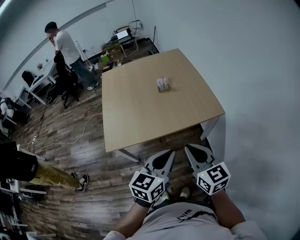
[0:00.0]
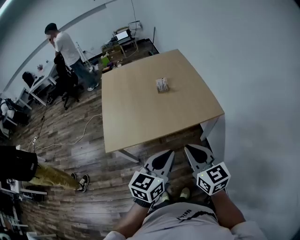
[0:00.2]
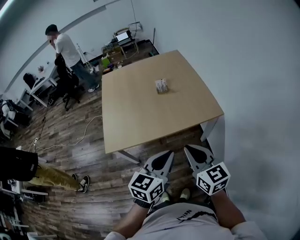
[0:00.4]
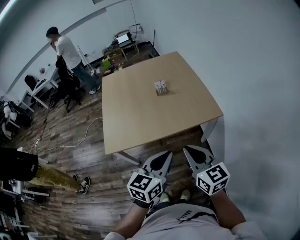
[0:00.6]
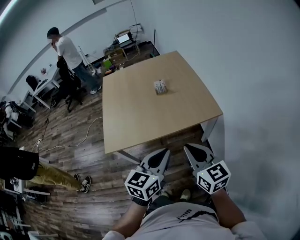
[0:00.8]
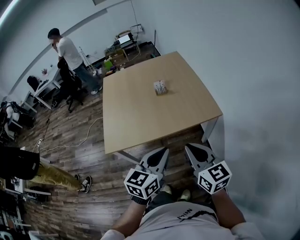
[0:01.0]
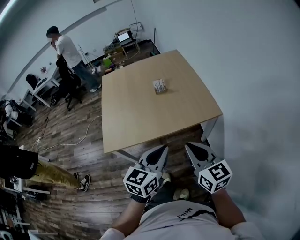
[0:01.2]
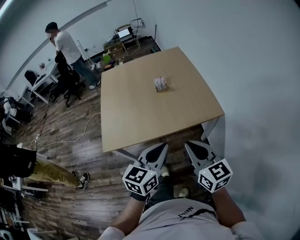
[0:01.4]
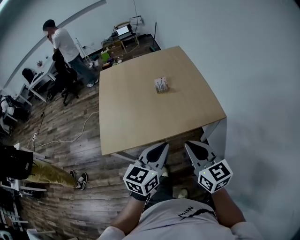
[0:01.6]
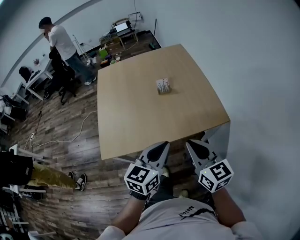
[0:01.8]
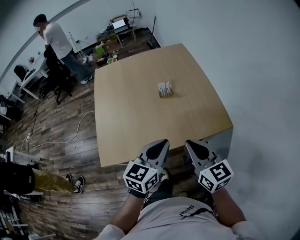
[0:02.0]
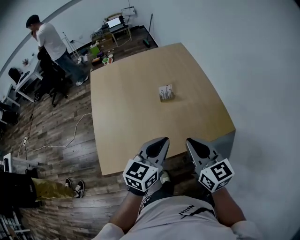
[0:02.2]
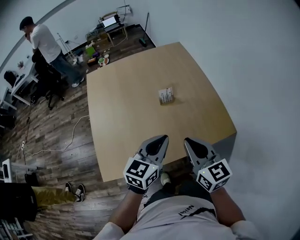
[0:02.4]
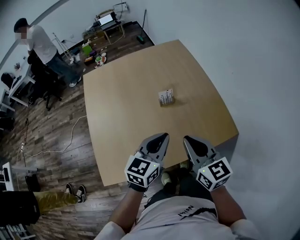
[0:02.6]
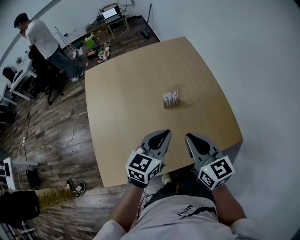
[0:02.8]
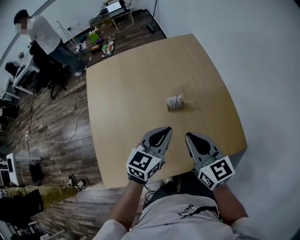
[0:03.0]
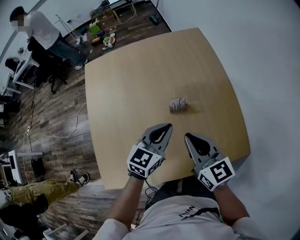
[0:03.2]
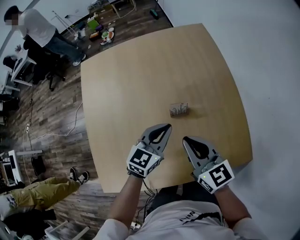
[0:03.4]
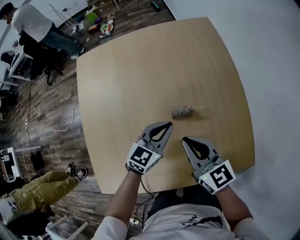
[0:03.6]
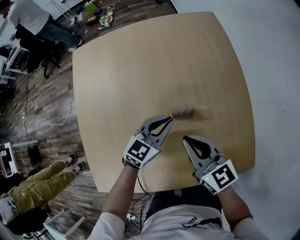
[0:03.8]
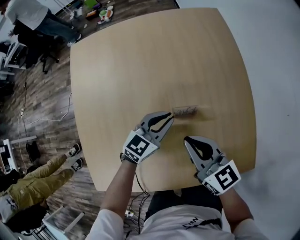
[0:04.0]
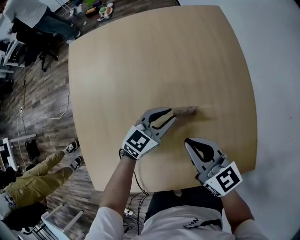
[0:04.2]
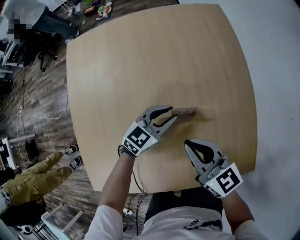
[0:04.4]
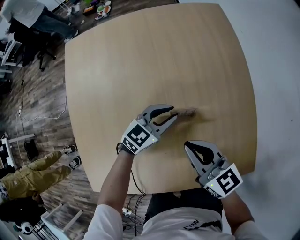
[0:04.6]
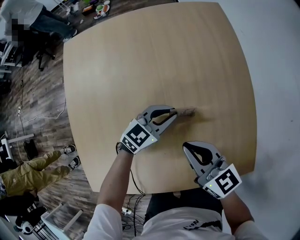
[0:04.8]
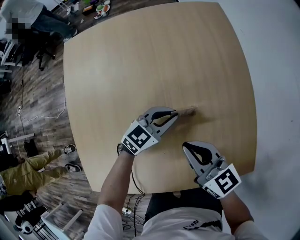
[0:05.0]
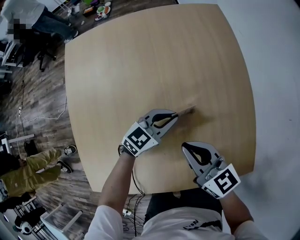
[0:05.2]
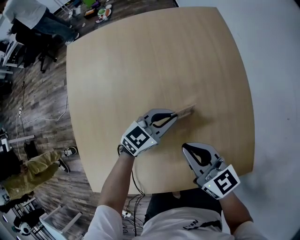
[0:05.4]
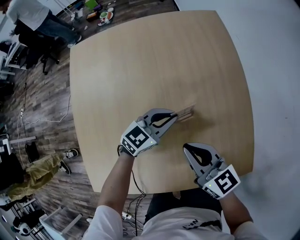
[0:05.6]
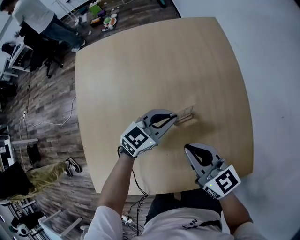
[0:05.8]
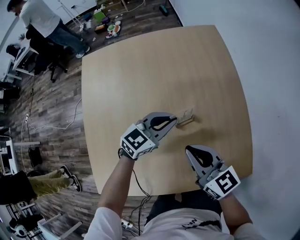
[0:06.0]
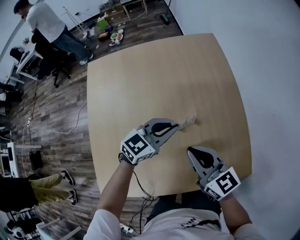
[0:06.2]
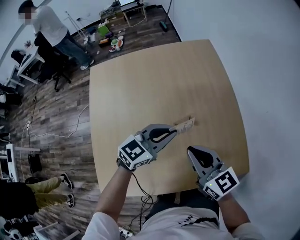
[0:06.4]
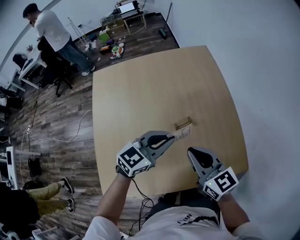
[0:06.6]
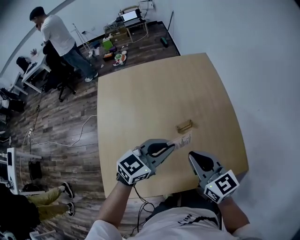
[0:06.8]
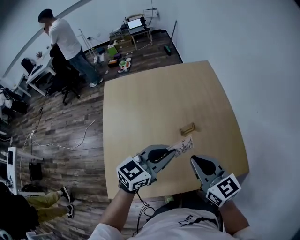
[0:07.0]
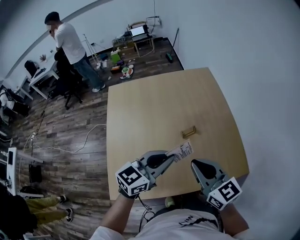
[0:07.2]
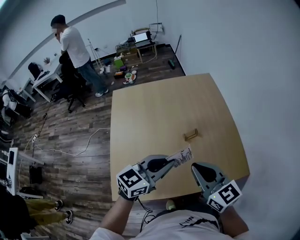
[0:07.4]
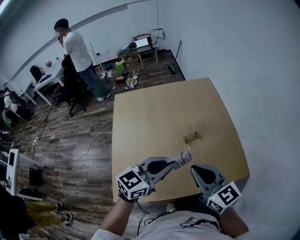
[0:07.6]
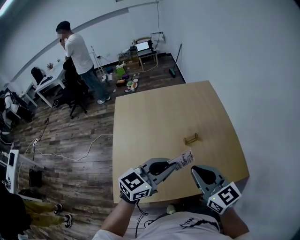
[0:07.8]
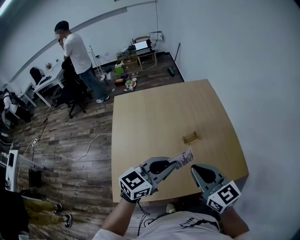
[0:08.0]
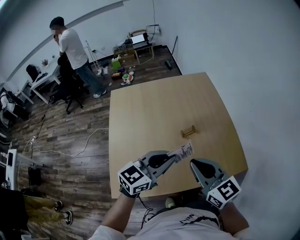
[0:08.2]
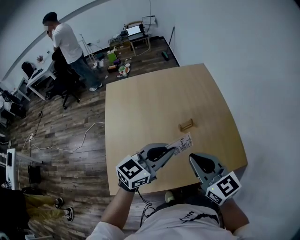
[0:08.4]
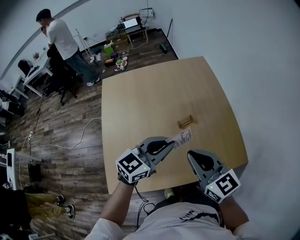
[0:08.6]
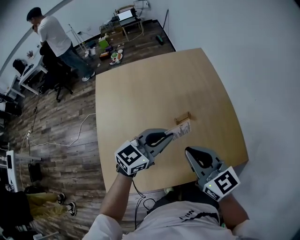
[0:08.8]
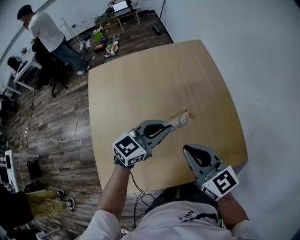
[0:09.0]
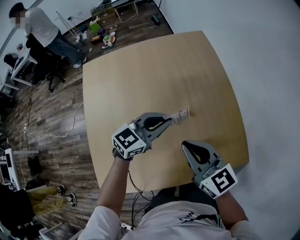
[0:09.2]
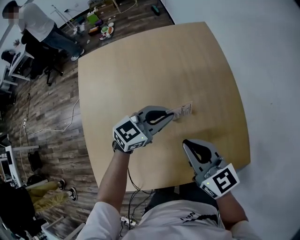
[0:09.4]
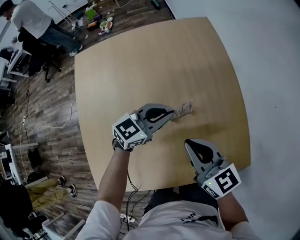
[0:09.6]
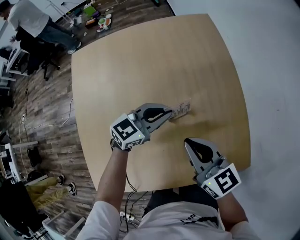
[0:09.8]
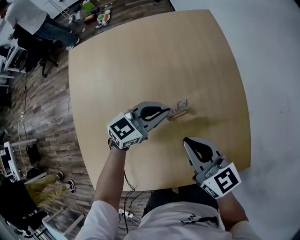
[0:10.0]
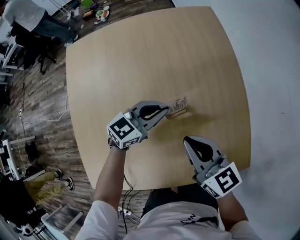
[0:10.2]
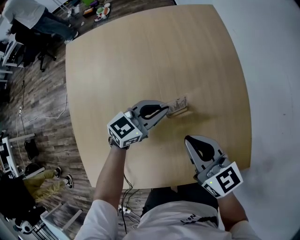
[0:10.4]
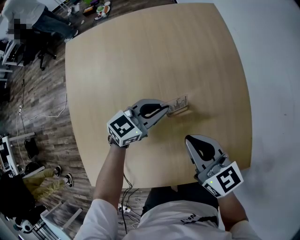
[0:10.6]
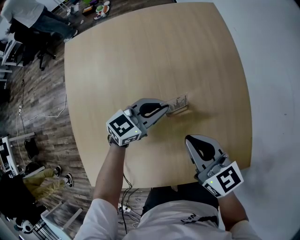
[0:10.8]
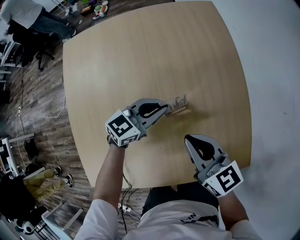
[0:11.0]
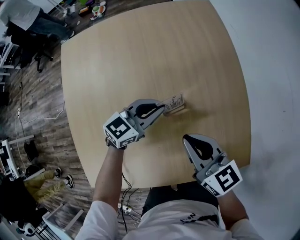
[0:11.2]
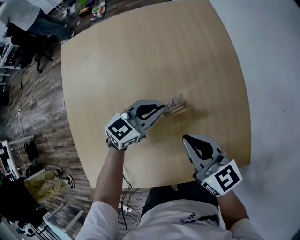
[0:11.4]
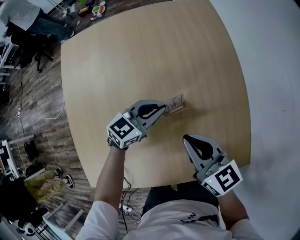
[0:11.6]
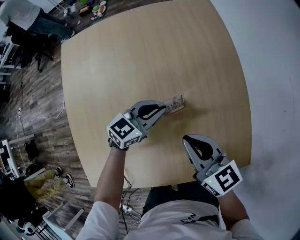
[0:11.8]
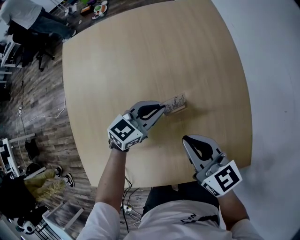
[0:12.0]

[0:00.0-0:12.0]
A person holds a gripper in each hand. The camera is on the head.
0:00.0 to 0:01.6: Both grippers travel together forward, some 5 cm.
0:01.6 to 0:03.0: The grippers both shift forward by some 35 cm.
0:03.0 to 0:04.4: The two grippers go about 25 cm downward and forward. The left gripper opens its fingers.
0:04.4 to 0:06.0: The left gripper heads upward, covering about 10 cm.
0:06.0 to 0:07.6: The grippers both shift backward and upward by some 30 cm.
0:07.6 to 0:09.0: The left gripper shifts some 20 cm forward and downward; the right gripper travels forward and downward by approximately 10 cm.
0:09.0 to 0:10.4: The grippers both shift downward and forward by roughly 20 cm.
0:10.4 to 0:12.0: The grippers stay close to where they were, moving slightly.

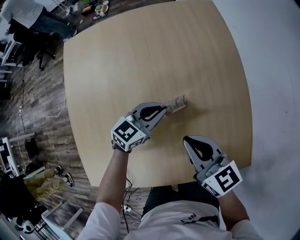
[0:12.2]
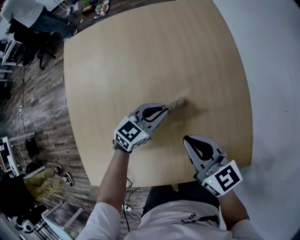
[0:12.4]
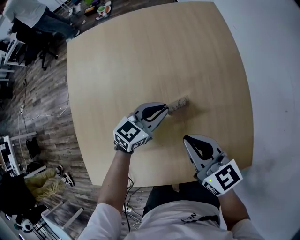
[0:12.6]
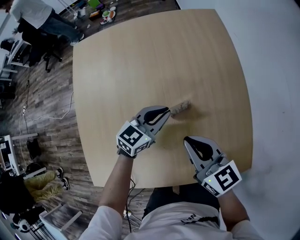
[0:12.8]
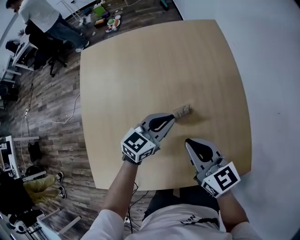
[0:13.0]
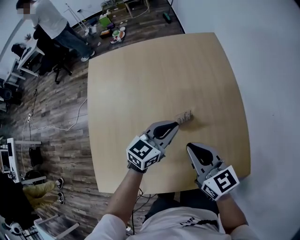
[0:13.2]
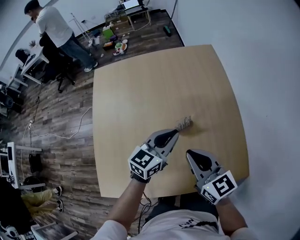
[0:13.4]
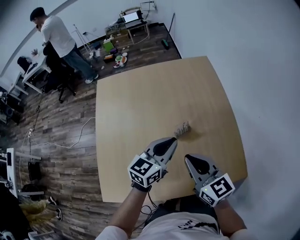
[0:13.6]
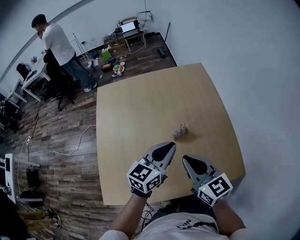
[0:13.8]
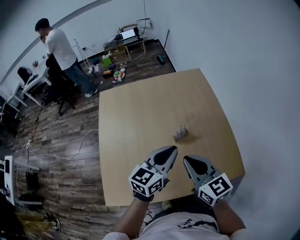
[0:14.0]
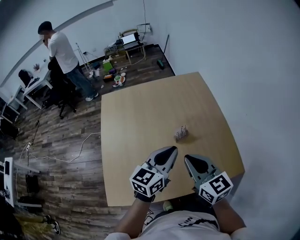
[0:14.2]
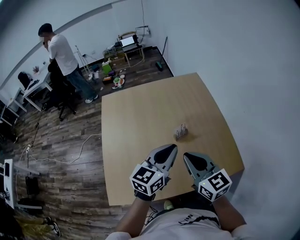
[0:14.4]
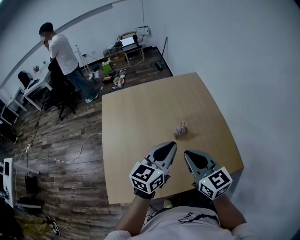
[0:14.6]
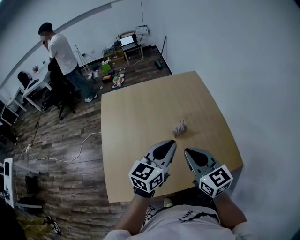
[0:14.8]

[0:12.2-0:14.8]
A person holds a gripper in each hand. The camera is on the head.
0:12.2 to 0:13.4: The left gripper goes approximately 15 cm upward and backward. The right gripper travels upward and backward by about 10 cm.
0:13.4 to 0:14.8: The two grippers go roughly 20 cm upward and backward.

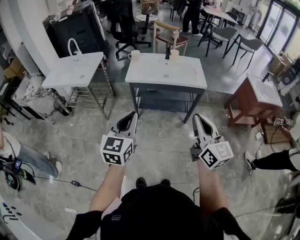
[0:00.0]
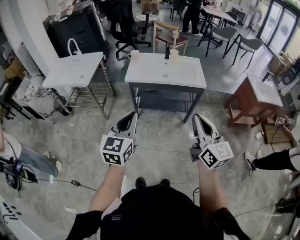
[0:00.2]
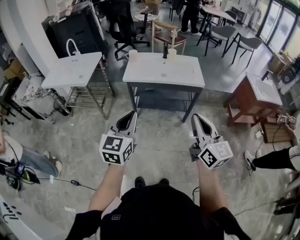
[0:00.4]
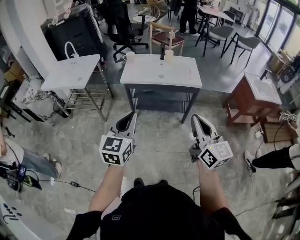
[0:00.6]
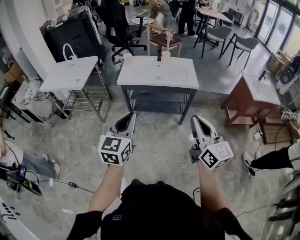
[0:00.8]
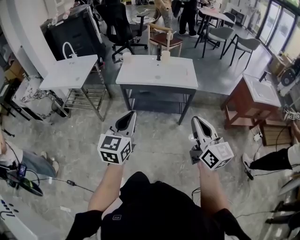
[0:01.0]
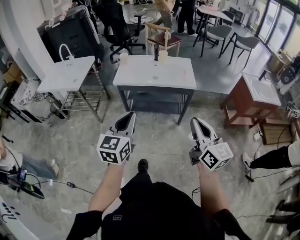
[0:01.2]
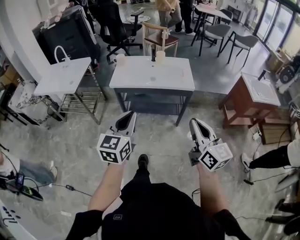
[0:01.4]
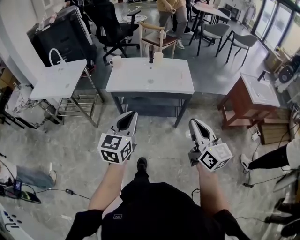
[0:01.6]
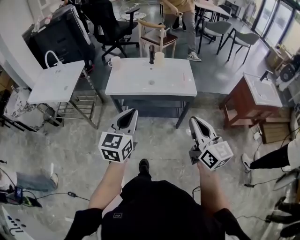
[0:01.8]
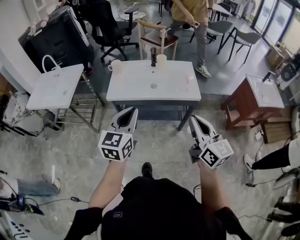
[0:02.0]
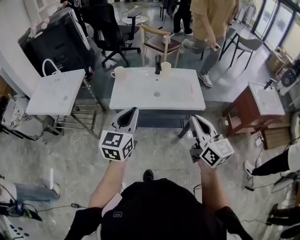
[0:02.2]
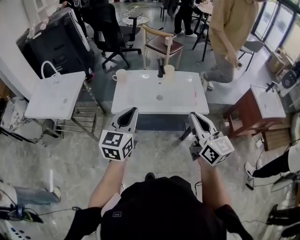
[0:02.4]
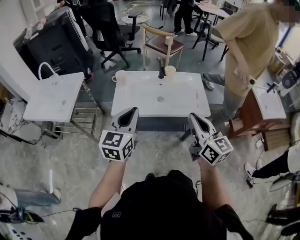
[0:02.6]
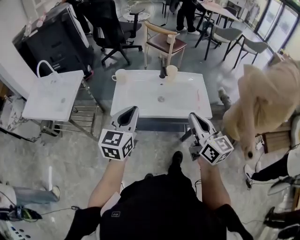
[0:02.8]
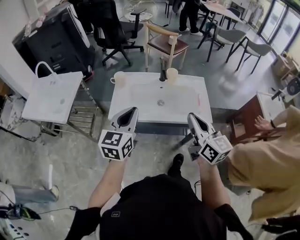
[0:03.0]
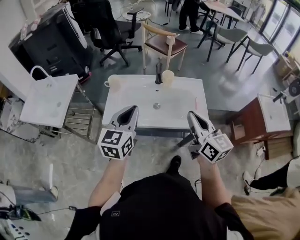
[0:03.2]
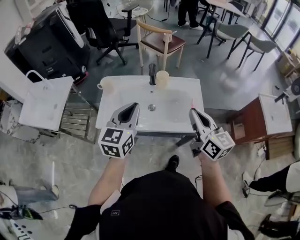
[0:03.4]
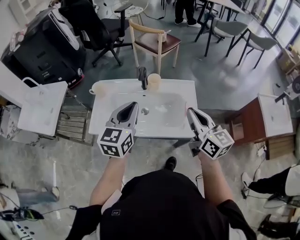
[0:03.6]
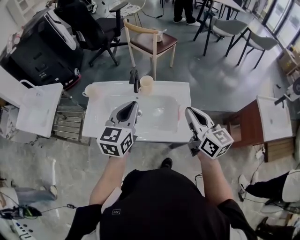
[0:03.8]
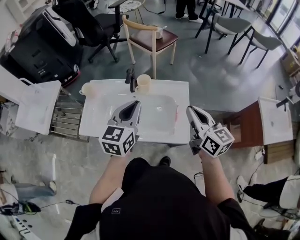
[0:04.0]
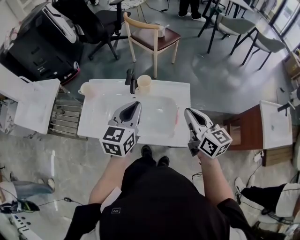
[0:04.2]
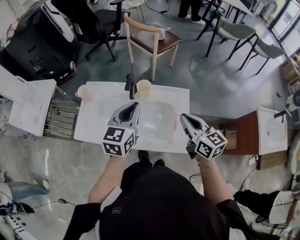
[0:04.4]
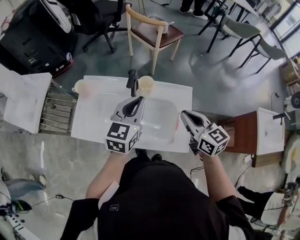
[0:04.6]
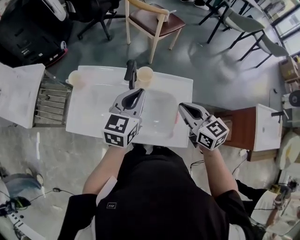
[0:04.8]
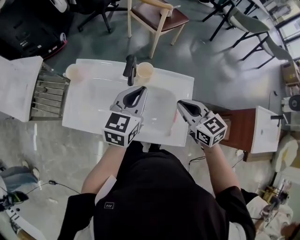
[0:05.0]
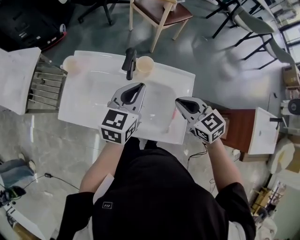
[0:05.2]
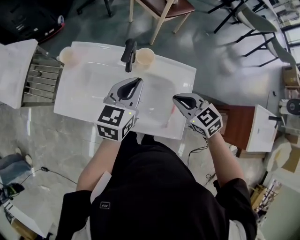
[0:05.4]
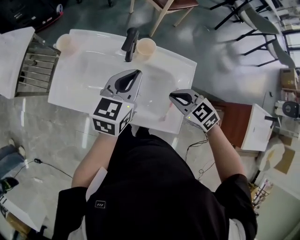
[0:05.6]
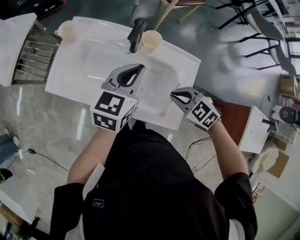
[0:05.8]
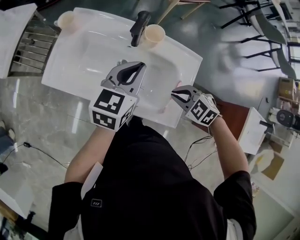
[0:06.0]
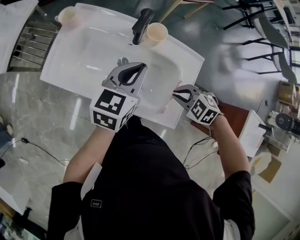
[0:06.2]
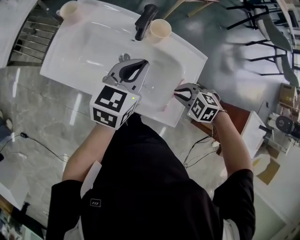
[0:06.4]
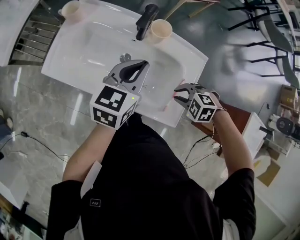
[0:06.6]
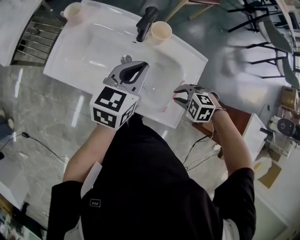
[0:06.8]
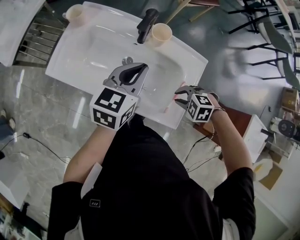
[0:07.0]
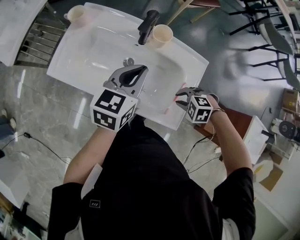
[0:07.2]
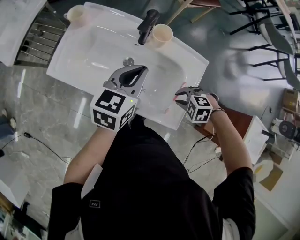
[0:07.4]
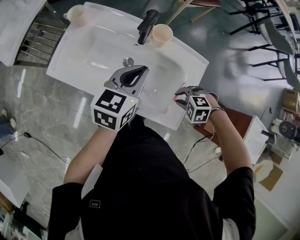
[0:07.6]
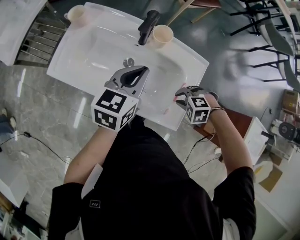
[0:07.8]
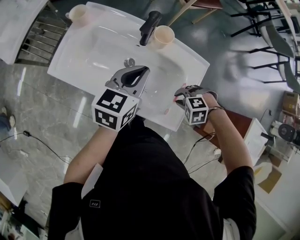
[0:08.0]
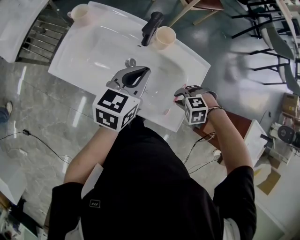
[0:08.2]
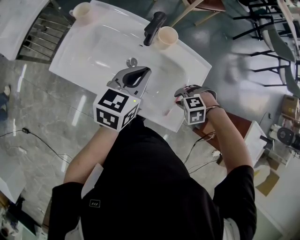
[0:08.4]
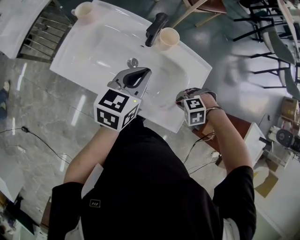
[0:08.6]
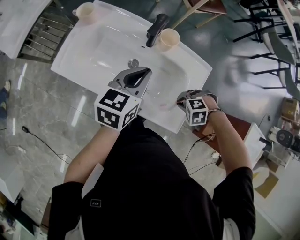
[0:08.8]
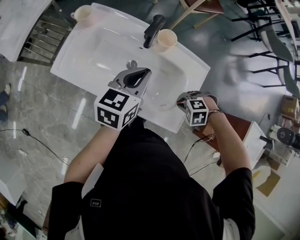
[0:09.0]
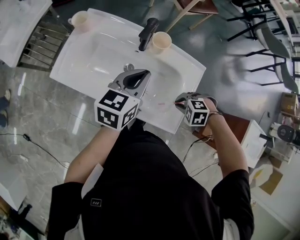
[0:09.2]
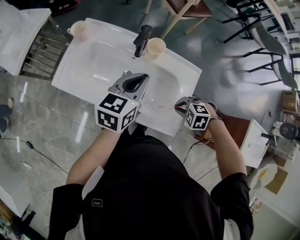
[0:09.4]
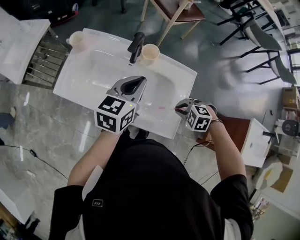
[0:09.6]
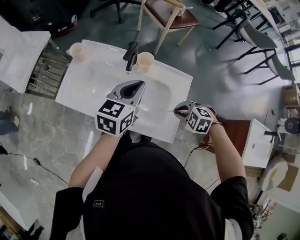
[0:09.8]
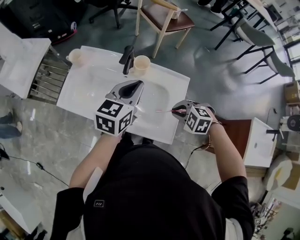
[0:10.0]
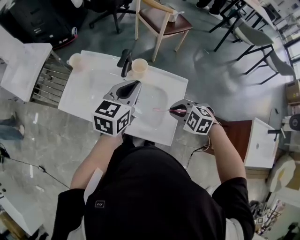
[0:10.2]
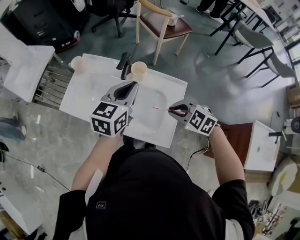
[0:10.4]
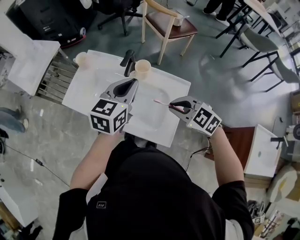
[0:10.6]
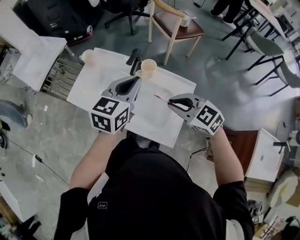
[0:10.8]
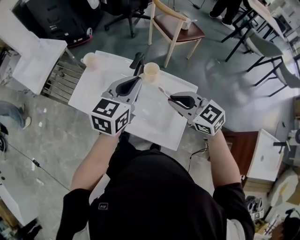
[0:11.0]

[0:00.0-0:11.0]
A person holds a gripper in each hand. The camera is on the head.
0:00.0 to 0:01.6: The two grippers go approximately 15 cm to the right and forward.
0:01.6 to 0:03.2: The two grippers go approximately 35 cm forward.
0:03.2 to 0:04.8: The right gripper is displaced forward, to the right and downward by about 30 cm, and rotates about 30 degrees. The left gripper shifts roughly 30 cm forward and to the right.
0:04.8 to 0:06.2: The right gripper goes approximately 20 cm downward, and angles its fingers downward, by roughly 40 degrees. Meanwhile the left gripper travels downward by roughly 10 cm.
0:06.2 to 0:07.8: The right gripper changes place by roughly 5 cm, and rotates about 30 degrees.
0:07.8 to 0:09.4: The grippers make only small movements.
0:09.4 to 0:11.0: The right gripper is displaced upward by approximately 20 cm, and points its fingers roughly 50 degrees further upward, while the left gripper goes roughly 10 cm upward.
